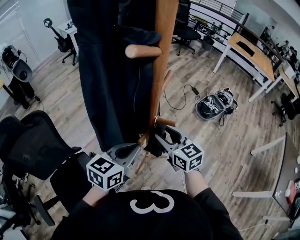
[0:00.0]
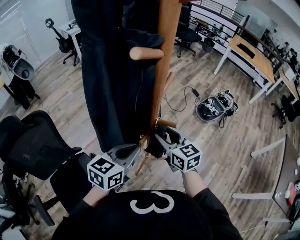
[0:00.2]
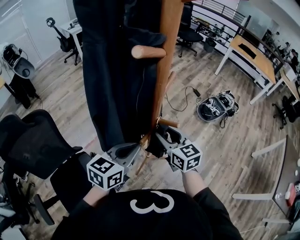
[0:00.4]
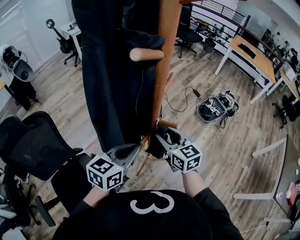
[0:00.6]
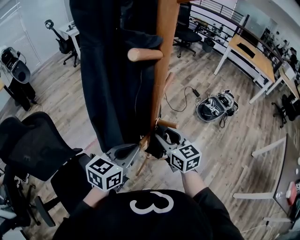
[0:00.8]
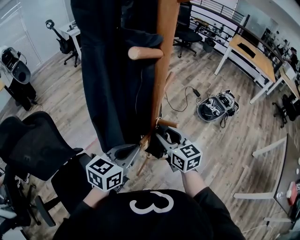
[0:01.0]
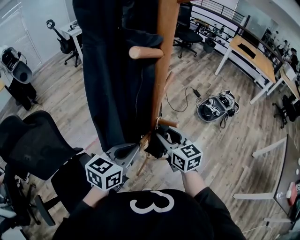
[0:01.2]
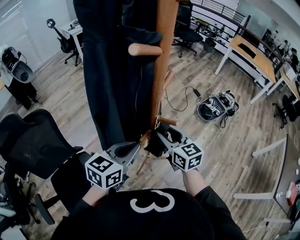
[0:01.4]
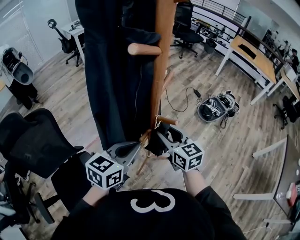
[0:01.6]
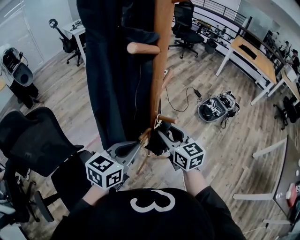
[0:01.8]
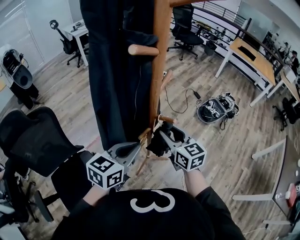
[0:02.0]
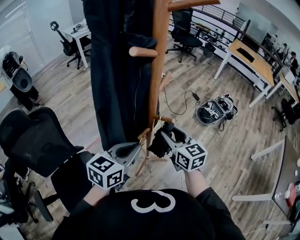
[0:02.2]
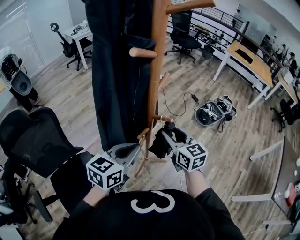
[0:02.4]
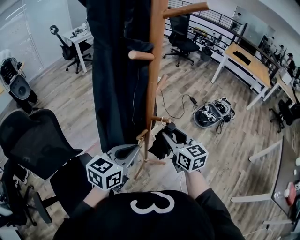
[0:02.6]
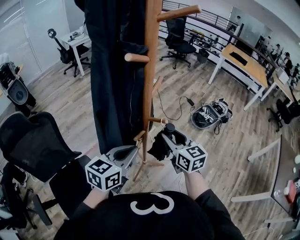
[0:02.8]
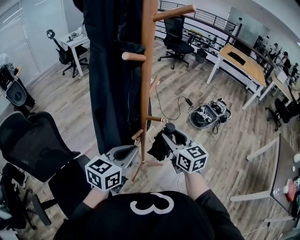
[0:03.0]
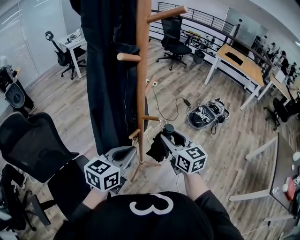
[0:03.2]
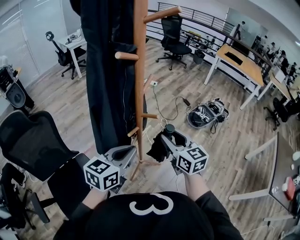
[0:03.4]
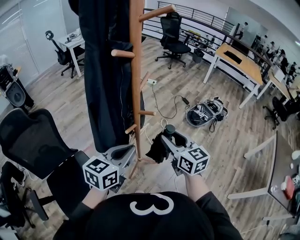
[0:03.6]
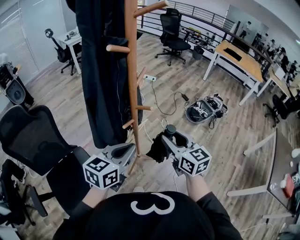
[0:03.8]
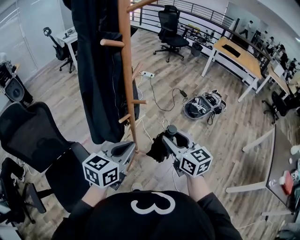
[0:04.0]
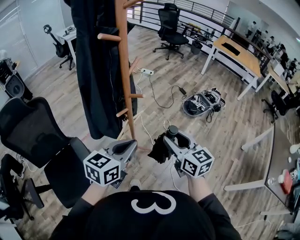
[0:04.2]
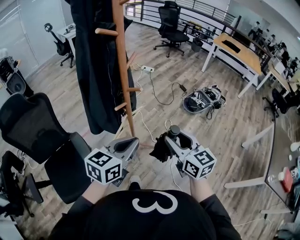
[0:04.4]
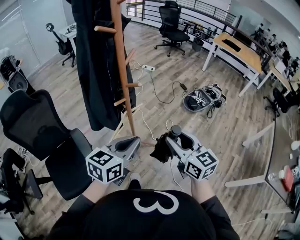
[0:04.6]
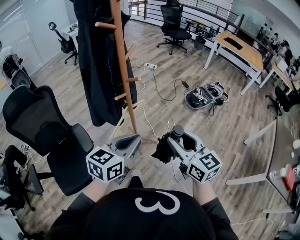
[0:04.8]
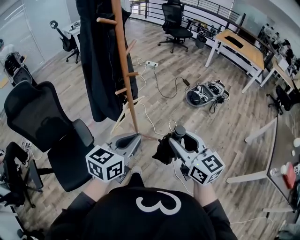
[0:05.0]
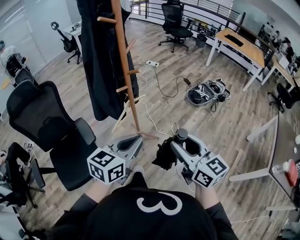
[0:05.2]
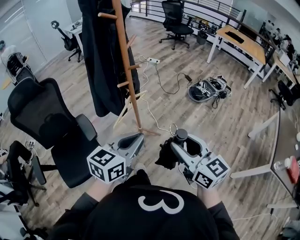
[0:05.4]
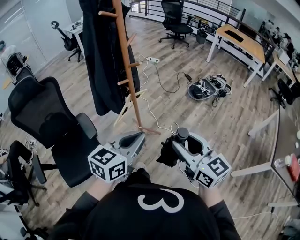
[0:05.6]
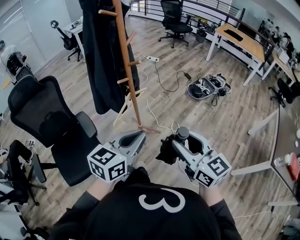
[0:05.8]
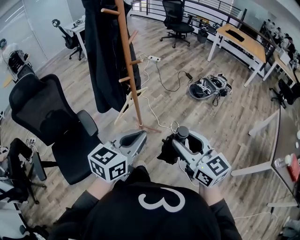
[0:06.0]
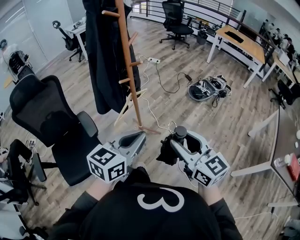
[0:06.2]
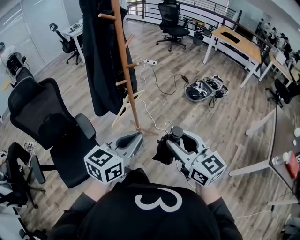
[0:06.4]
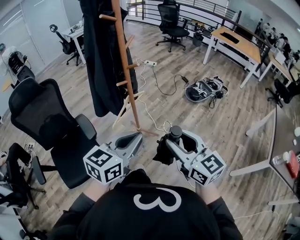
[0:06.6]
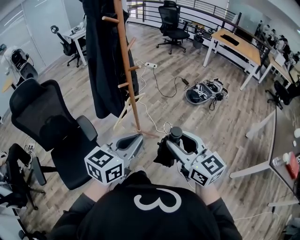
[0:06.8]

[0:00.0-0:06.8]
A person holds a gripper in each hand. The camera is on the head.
0:00.0 to 0:01.4: The grippers move only a little.
0:01.4 to 0:02.8: The right gripper shifts some 5 cm to the right, while the left gripper ends up roughly 5 cm from where it was.
0:02.8 to 0:04.0: The right gripper travels backward and to the right by some 15 cm. Meanwhile the left gripper shifts some 10 cm to the right and backward.
0:04.0 to 0:05.4: The right gripper shifts about 20 cm backward. The left gripper moves backward and to the right, about 15 cm.
0:05.4 to 0:06.8: The grippers make only small movements.

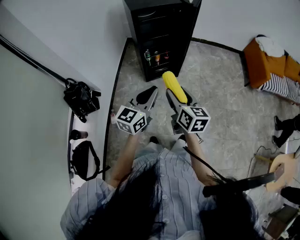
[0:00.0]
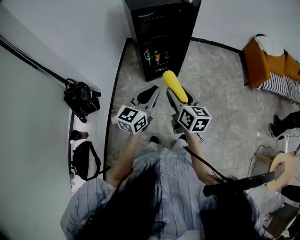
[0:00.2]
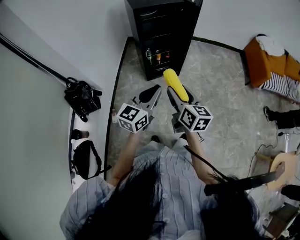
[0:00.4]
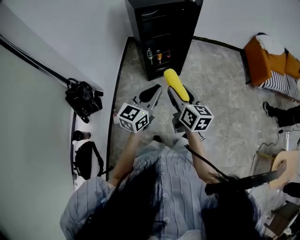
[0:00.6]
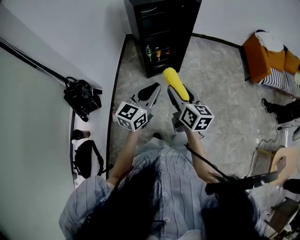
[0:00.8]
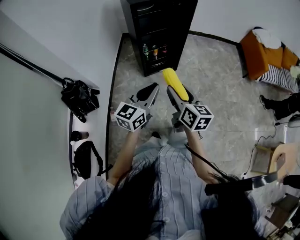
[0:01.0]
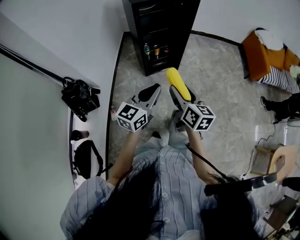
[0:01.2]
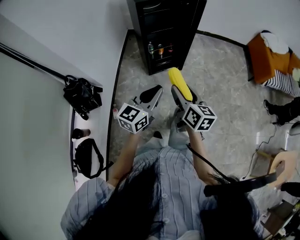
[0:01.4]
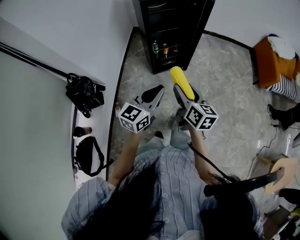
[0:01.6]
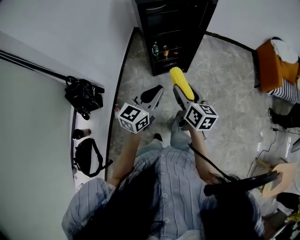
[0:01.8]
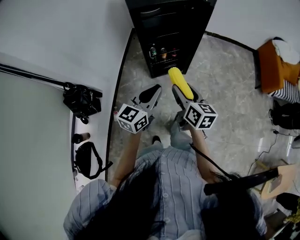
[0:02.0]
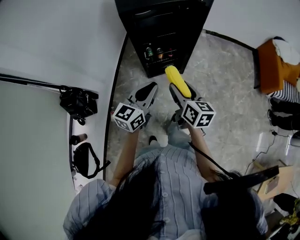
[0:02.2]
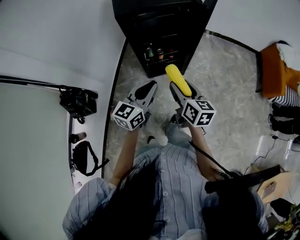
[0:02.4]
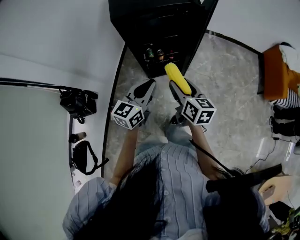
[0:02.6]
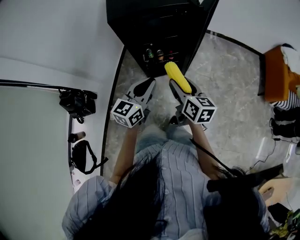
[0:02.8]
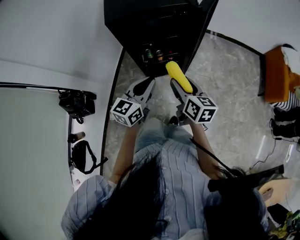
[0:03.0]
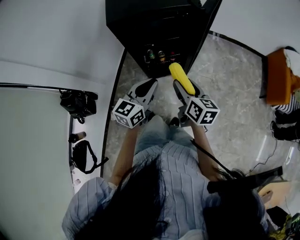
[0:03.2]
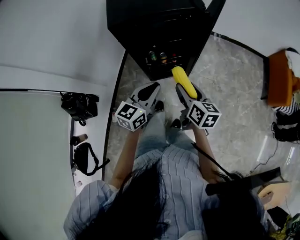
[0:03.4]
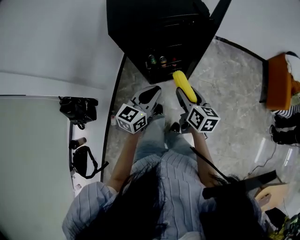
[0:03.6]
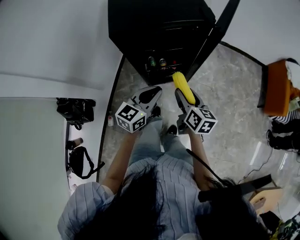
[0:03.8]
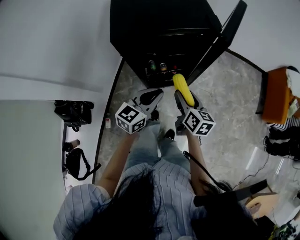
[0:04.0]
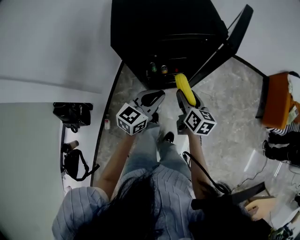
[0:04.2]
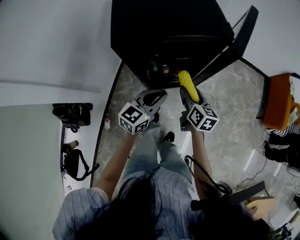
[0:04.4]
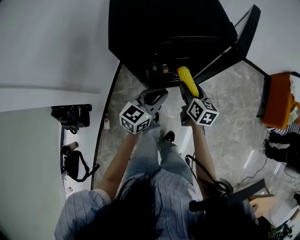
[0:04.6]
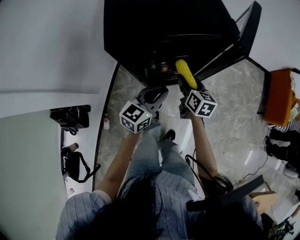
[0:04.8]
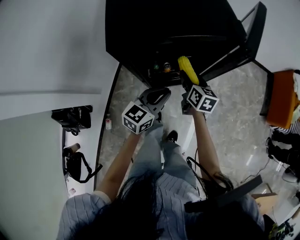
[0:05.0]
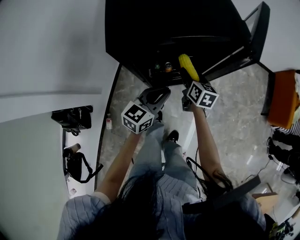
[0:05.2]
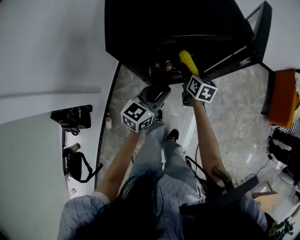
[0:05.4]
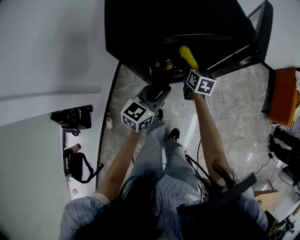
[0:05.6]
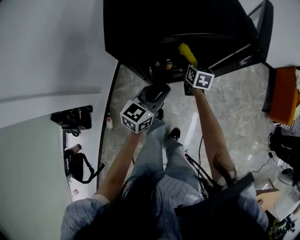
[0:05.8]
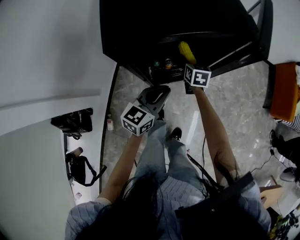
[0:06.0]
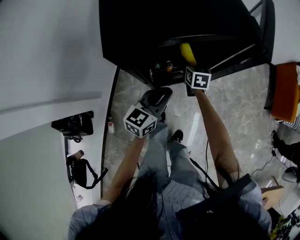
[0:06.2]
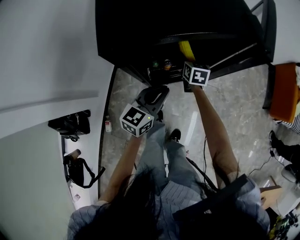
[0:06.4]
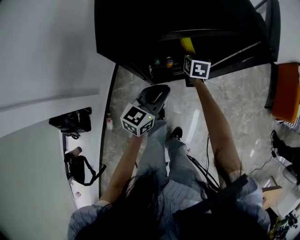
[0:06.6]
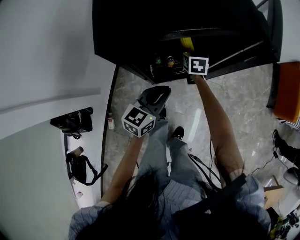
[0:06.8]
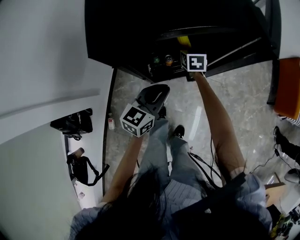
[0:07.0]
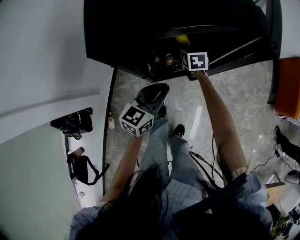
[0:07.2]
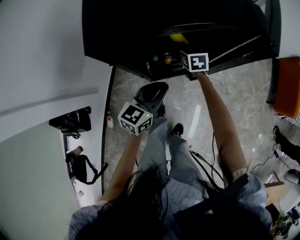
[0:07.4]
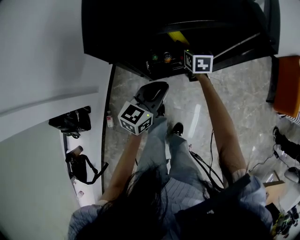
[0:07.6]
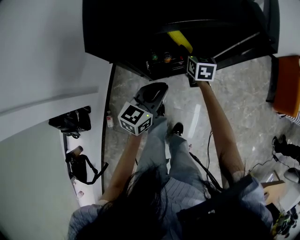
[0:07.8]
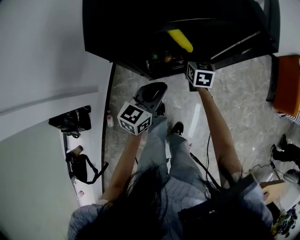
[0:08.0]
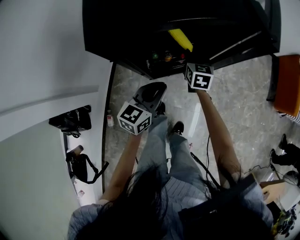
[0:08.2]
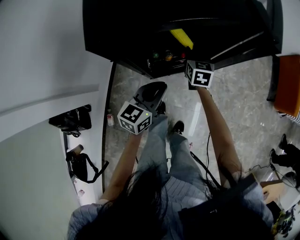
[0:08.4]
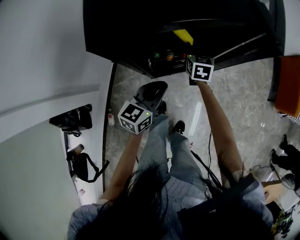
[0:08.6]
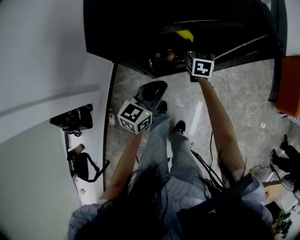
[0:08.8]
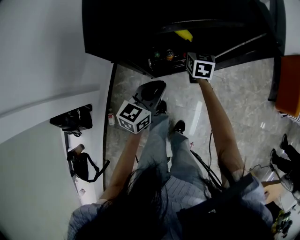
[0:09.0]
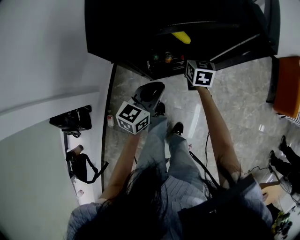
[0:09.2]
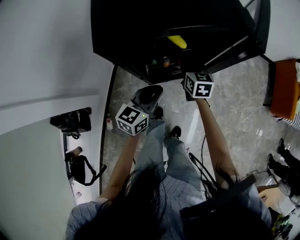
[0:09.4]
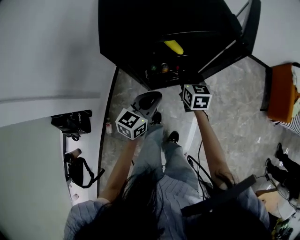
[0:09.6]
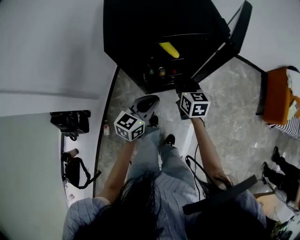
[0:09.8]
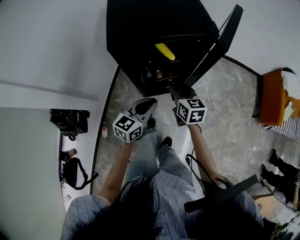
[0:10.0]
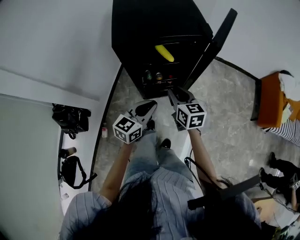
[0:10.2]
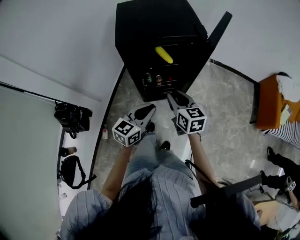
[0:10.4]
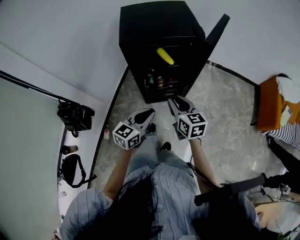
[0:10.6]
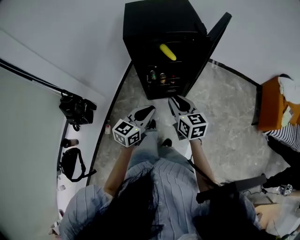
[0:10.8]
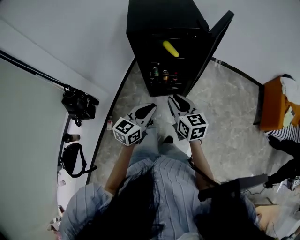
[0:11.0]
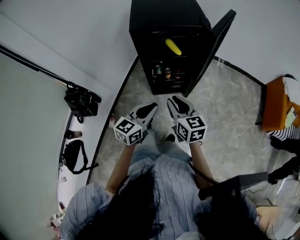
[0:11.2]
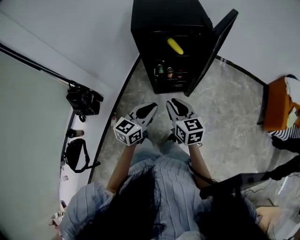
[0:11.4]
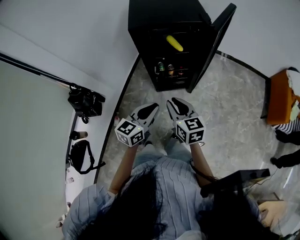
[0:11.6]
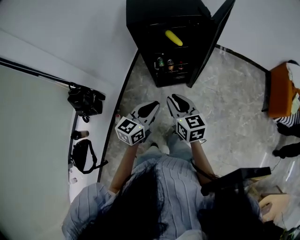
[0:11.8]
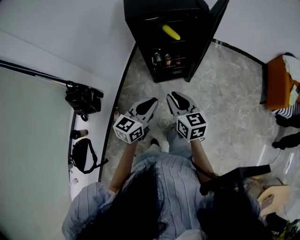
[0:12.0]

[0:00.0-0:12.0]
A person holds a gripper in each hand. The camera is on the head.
0:00.0 to 0:01.6: The right gripper moves forward, some 5 cm, while the left gripper ends up roughly 5 cm from where it was.
0:01.6 to 0:03.0: The left gripper travels forward by roughly 25 cm. Meanwhile the right gripper is displaced forward and to the right by roughly 25 cm.
0:03.0 to 0:04.4: Both grippers travel together forward and downward, approximately 15 cm.
0:04.4 to 0:06.0: The left gripper is displaced downward by some 5 cm; the right gripper heads forward, downward and to the left, covering about 20 cm, and rotates some 20 degrees.
0:06.0 to 0:07.6: There are only small adjustments of the grippers.
0:07.6 to 0:09.0: The right gripper closes its fingers.
0:09.0 to 0:10.4: The right gripper heads backward and upward, covering some 35 cm, and changes its angle by roughly 20 degrees, while the left gripper goes approximately 20 cm backward, upward and to the right.
0:10.4 to 0:12.0: The two grippers go roughly 15 cm backward.

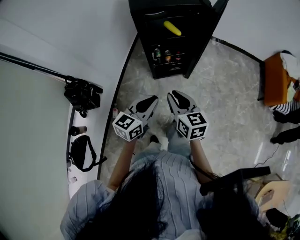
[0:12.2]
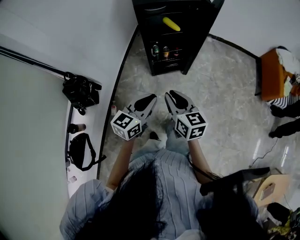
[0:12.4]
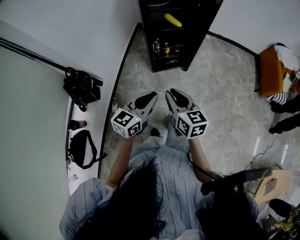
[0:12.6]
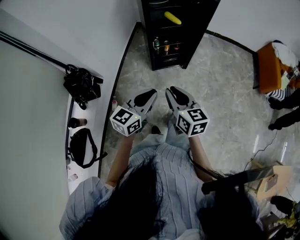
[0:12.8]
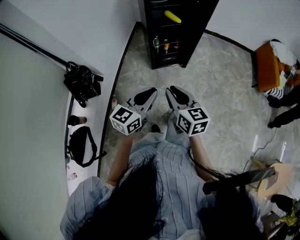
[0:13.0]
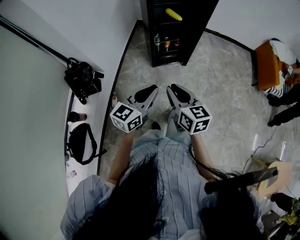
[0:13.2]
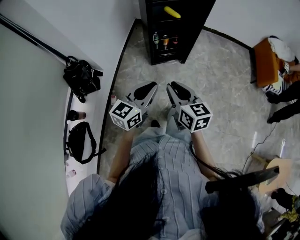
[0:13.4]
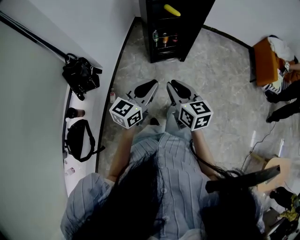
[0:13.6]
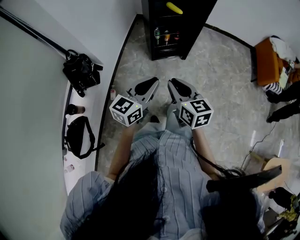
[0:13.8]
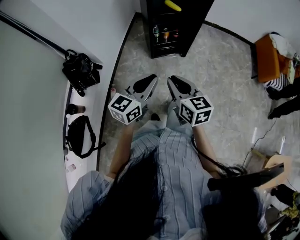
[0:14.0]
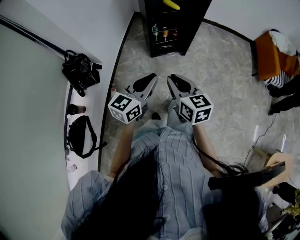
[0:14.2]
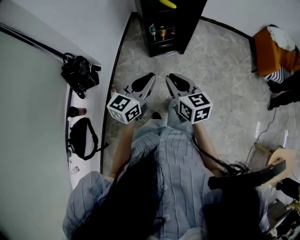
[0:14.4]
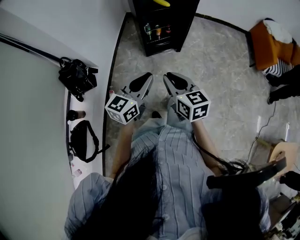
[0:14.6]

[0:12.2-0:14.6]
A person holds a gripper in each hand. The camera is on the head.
0:12.2 to 0:13.4: The two grippers go roughly 15 cm backward.
0:13.4 to 0:14.6: There are only small adjustments of the grippers.

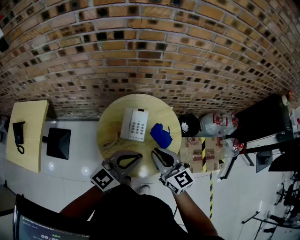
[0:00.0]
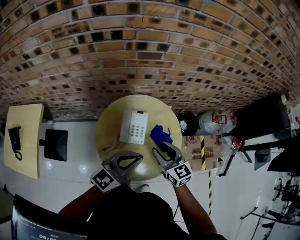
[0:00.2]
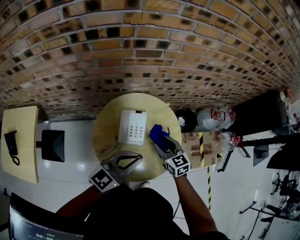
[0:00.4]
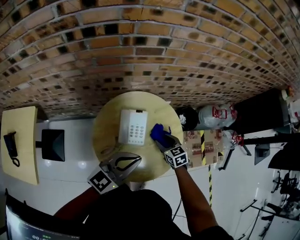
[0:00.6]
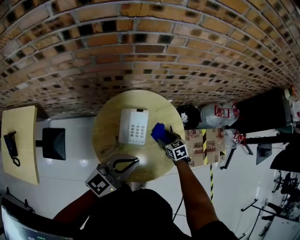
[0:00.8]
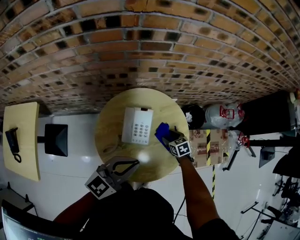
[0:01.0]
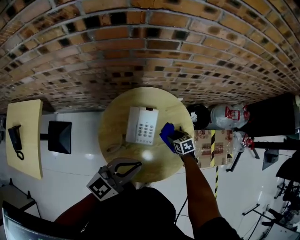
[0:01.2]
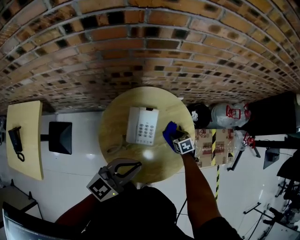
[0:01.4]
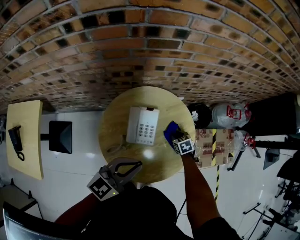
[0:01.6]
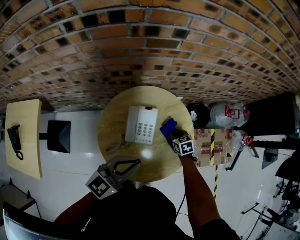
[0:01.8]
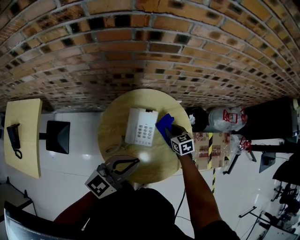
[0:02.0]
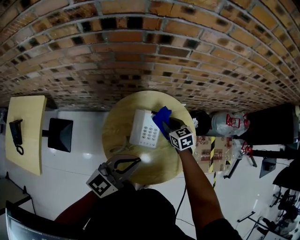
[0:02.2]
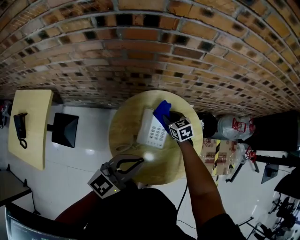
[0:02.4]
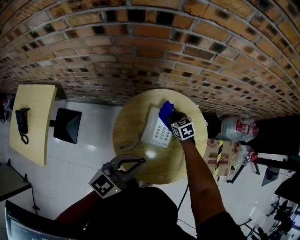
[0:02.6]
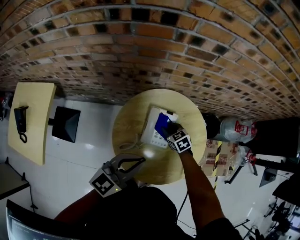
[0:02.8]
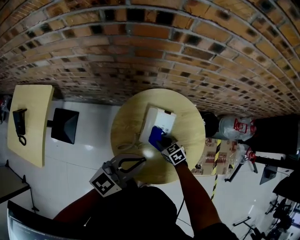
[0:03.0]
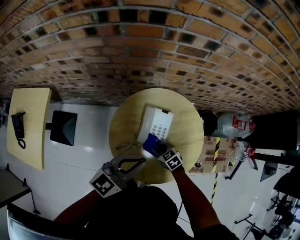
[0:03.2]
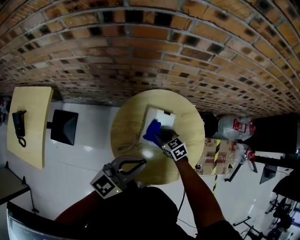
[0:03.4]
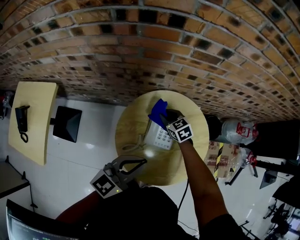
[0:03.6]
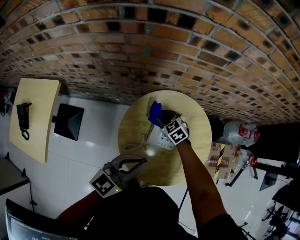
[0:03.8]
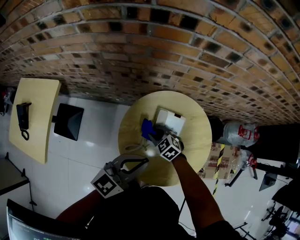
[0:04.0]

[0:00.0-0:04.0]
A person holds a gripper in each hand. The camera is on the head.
0:00.0 to 0:01.4: The right gripper is displaced downward and forward by about 40 cm, angles its fingers downward, by approximately 50 degrees, and opens; the left gripper is displaced downward, forward and to the left by roughly 10 cm.
0:01.4 to 0:02.6: The right gripper moves to the left, forward and upward, approximately 20 cm, while the left gripper is displaced to the left by about 5 cm.
0:02.6 to 0:04.0: The right gripper swings forward and backward, some 20 cm each way, with 2 reversals, and turns by some 30 degrees.
